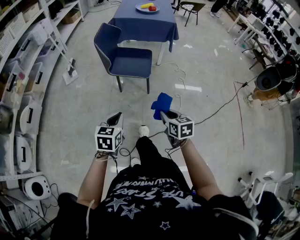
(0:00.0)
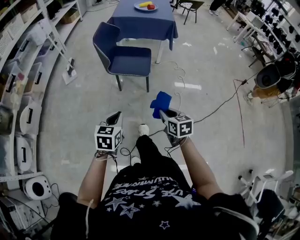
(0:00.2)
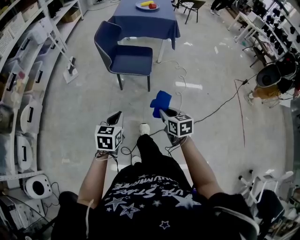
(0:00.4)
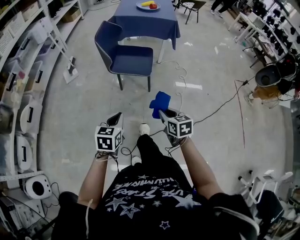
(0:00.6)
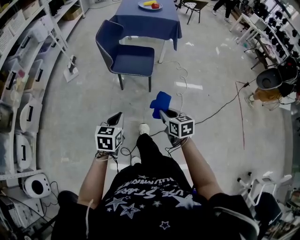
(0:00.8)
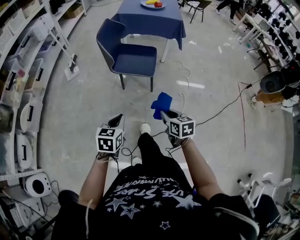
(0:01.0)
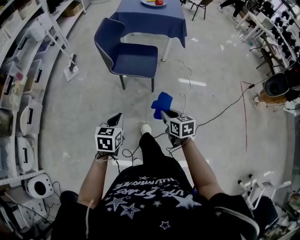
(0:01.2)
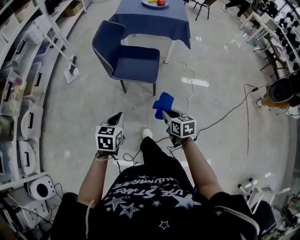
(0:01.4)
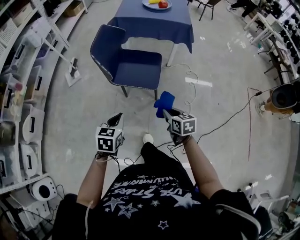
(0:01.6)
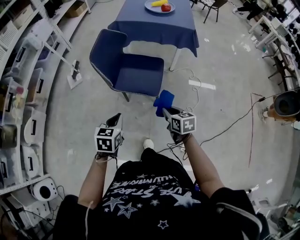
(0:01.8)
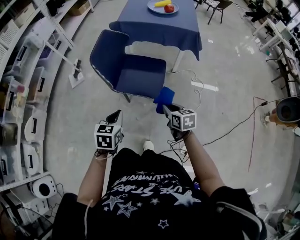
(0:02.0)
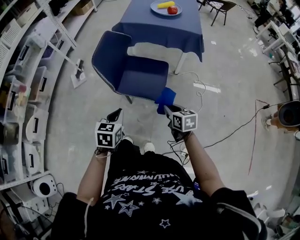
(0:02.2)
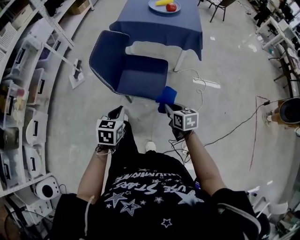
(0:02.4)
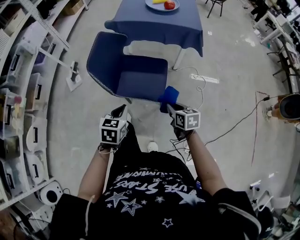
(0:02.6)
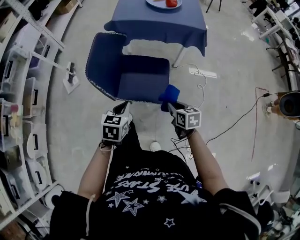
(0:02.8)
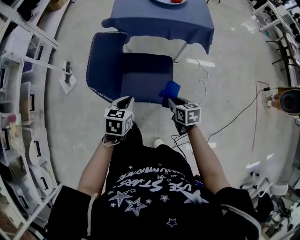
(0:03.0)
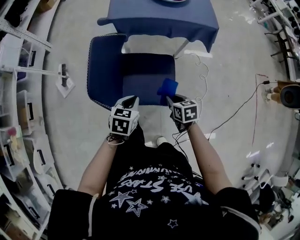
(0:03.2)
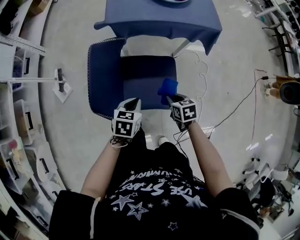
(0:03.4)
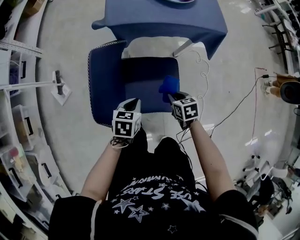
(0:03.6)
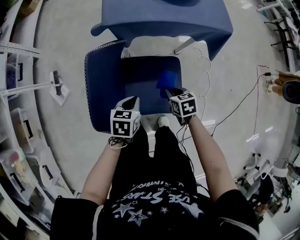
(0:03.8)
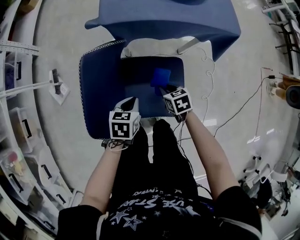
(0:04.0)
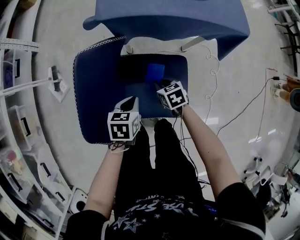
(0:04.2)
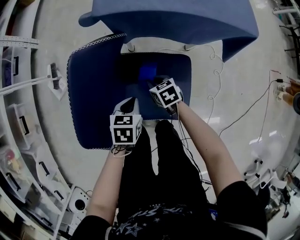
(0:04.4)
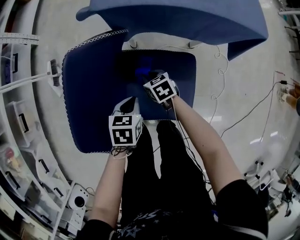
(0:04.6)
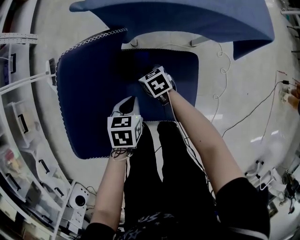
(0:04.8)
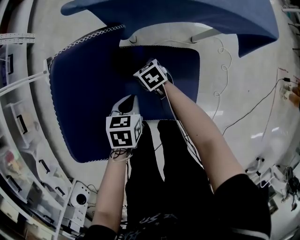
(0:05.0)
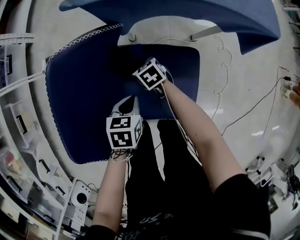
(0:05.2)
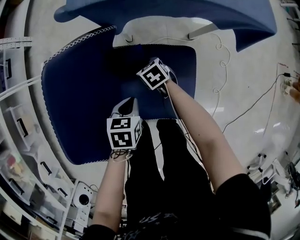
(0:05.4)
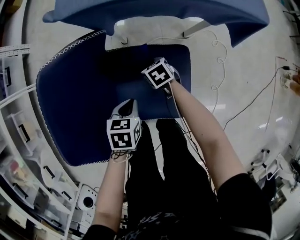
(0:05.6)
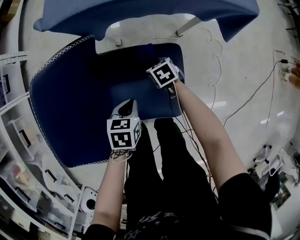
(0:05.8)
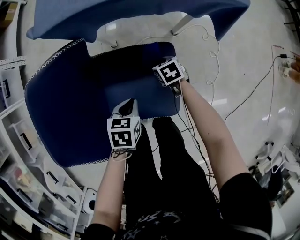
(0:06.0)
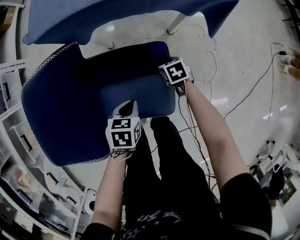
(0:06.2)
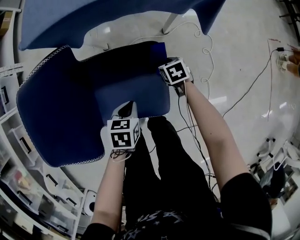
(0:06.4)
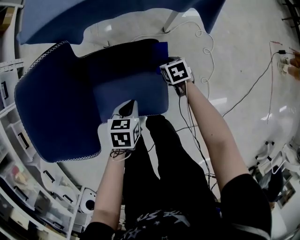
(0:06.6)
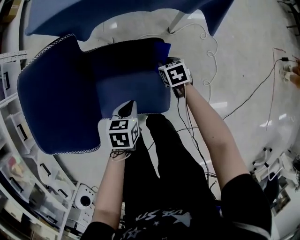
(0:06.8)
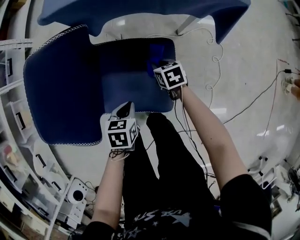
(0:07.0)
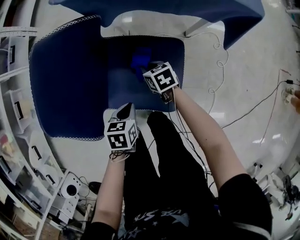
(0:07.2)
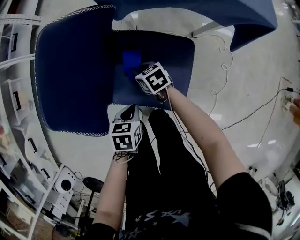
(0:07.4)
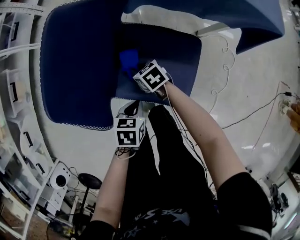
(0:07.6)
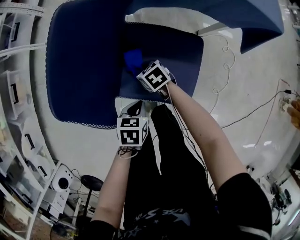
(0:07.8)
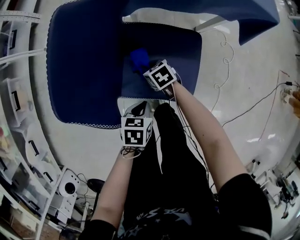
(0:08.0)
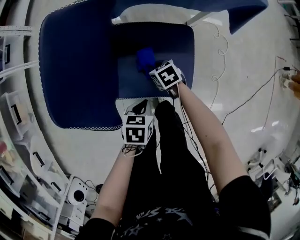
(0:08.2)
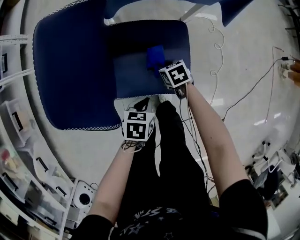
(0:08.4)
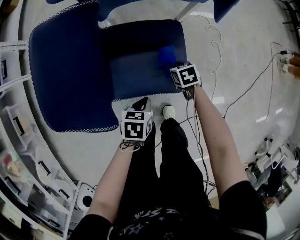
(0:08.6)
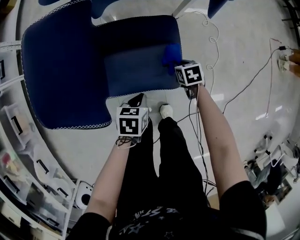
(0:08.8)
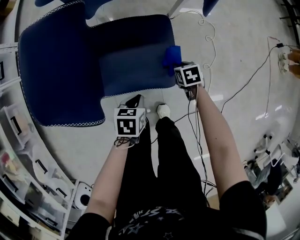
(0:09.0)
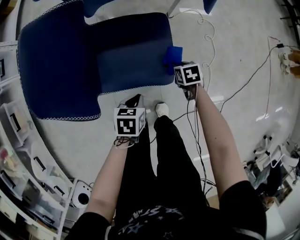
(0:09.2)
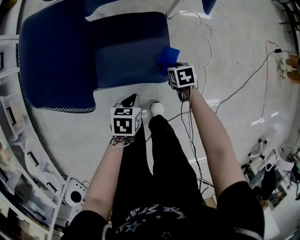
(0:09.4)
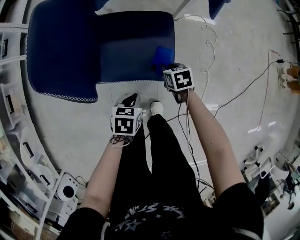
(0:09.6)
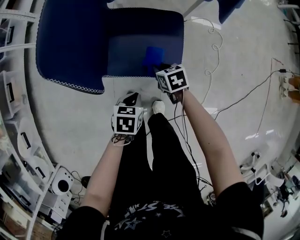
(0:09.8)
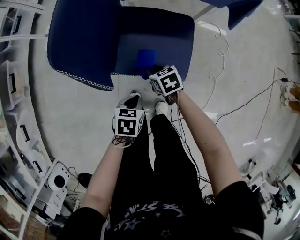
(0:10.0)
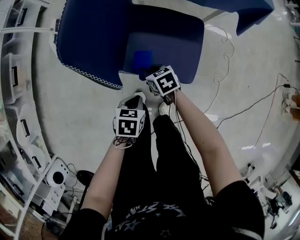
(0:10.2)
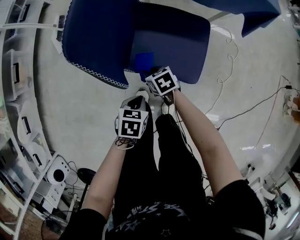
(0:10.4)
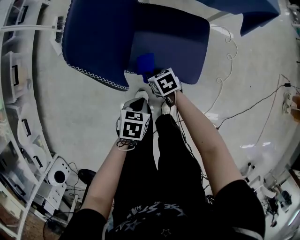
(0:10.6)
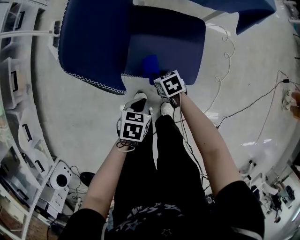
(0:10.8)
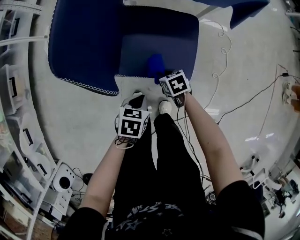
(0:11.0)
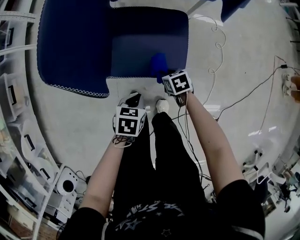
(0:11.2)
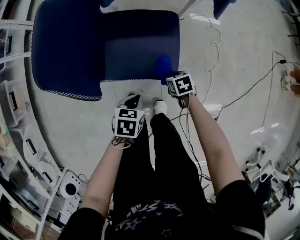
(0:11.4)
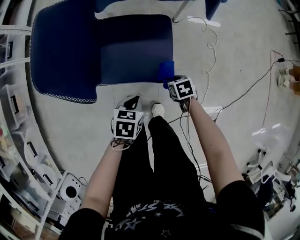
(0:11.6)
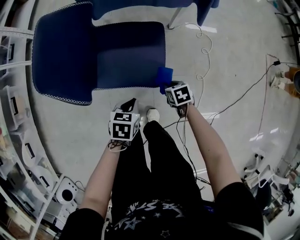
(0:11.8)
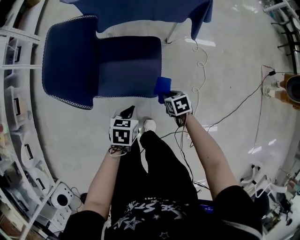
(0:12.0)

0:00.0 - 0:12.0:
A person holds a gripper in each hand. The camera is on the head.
0:00.0 - 0:01.6: The grippers both shift forward by roughly 20 cm.
0:01.6 - 0:03.0: The two grippers go about 25 cm forward.
0:03.0 - 0:04.4: The right gripper moves forward, downward and to the left, approximately 30 cm, while the left gripper is displaced downward and forward by roughly 20 cm.
0:04.4 - 0:06.0: The right gripper goes some 15 cm to the right and downward. Meanwhile the left gripper moves to the right, approximately 10 cm.
0:06.0 - 0:07.6: The left gripper changes place by some 10 cm. The right gripper moves about 25 cm, and changes its angle by some 30 degrees.
0:07.6 - 0:09.0: The right gripper ends up about 30 cm from where it was, and swivels some 40 degrees, while the left gripper ends up roughly 5 cm from where it was.
0:09.0 - 0:10.4: The left gripper shifts by approximately 10 cm; the right gripper shifts by some 30 cm, and swivels some 30 degrees.
0:10.4 - 0:12.0: The right gripper is displaced to the right by some 30 cm. The left gripper moves to the right and upward, some 15 cm.

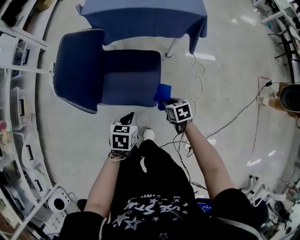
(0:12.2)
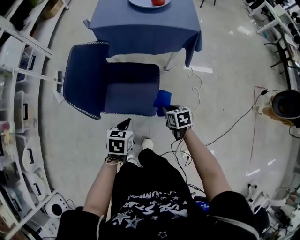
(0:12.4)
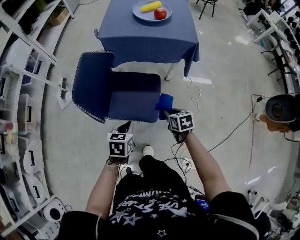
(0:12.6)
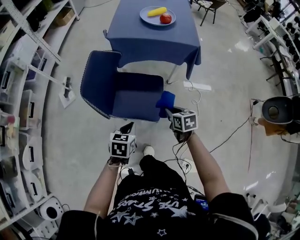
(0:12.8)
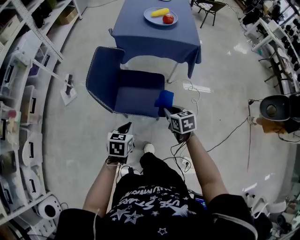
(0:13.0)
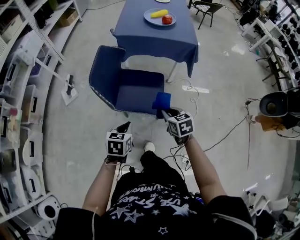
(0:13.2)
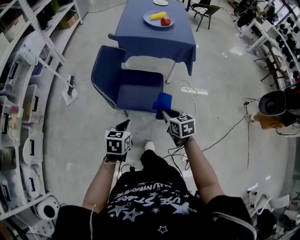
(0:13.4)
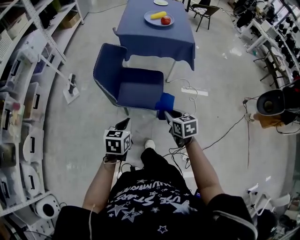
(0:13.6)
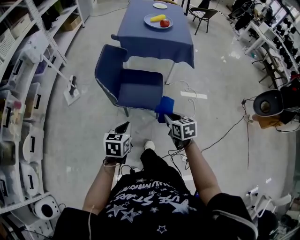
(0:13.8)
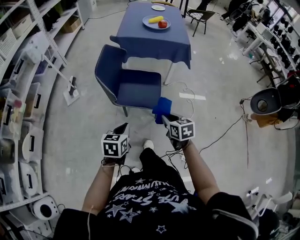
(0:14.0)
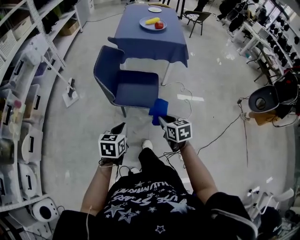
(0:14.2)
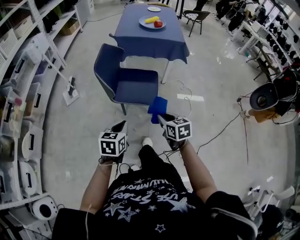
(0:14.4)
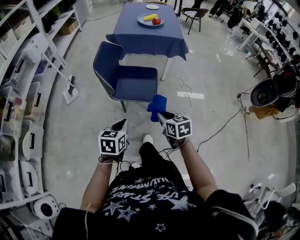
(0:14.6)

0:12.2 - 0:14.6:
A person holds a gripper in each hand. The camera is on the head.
0:12.2 - 0:13.4: The right gripper travels upward and backward by some 25 cm, and changes its angle by about 20 degrees, while the left gripper moves upward, backward and to the left, approximately 20 cm.
0:13.4 - 0:14.6: Both grippers move backward, approximately 15 cm.

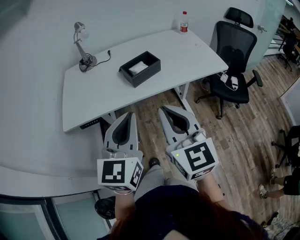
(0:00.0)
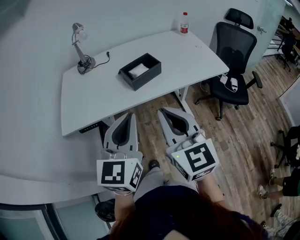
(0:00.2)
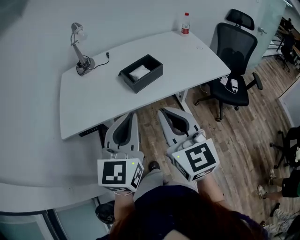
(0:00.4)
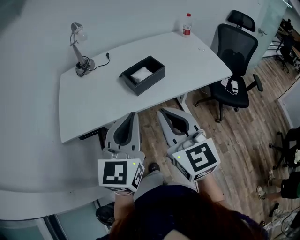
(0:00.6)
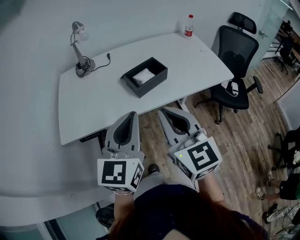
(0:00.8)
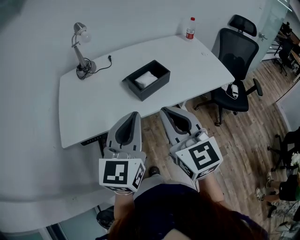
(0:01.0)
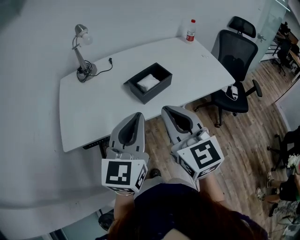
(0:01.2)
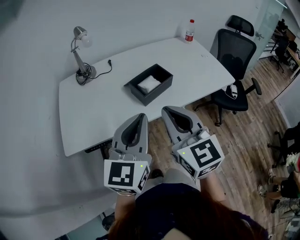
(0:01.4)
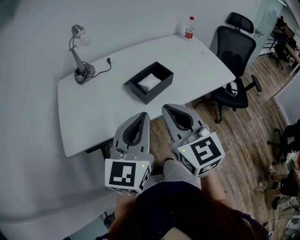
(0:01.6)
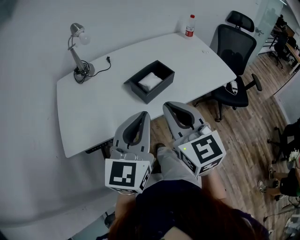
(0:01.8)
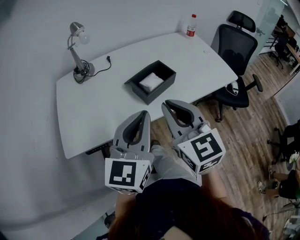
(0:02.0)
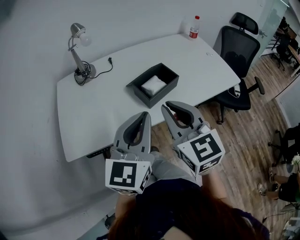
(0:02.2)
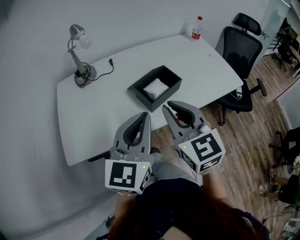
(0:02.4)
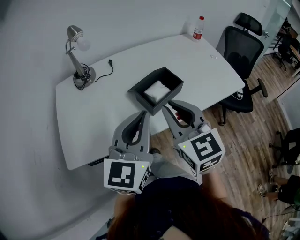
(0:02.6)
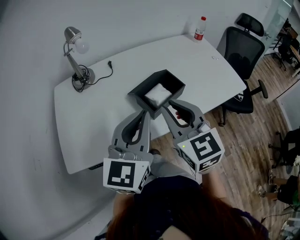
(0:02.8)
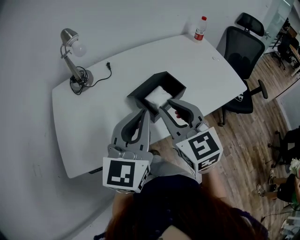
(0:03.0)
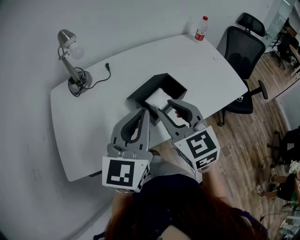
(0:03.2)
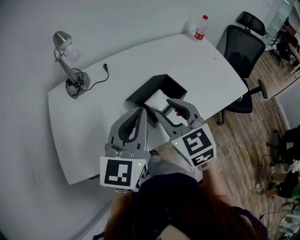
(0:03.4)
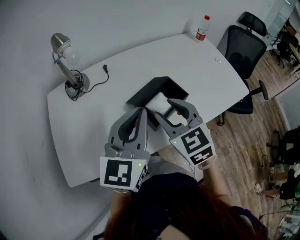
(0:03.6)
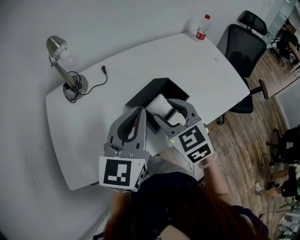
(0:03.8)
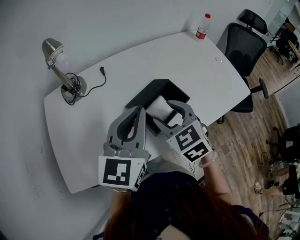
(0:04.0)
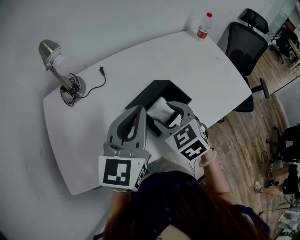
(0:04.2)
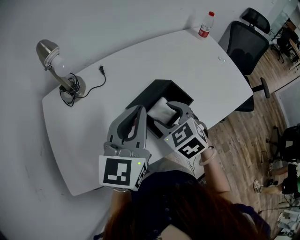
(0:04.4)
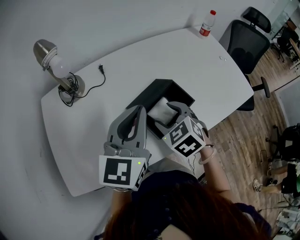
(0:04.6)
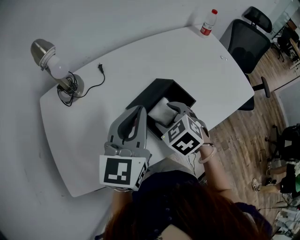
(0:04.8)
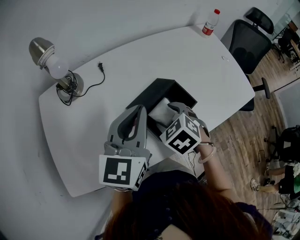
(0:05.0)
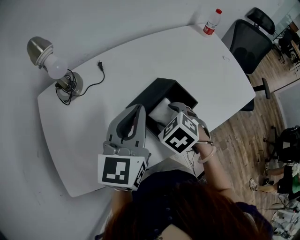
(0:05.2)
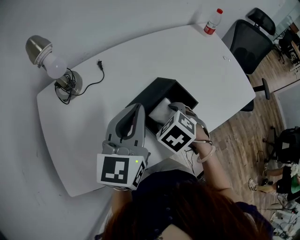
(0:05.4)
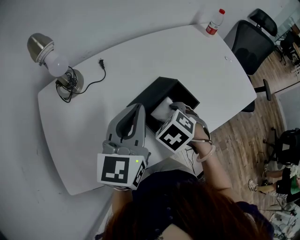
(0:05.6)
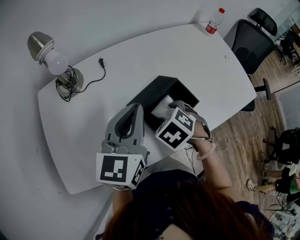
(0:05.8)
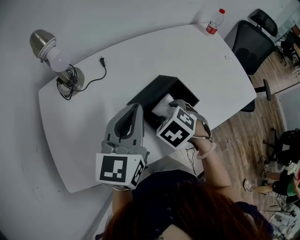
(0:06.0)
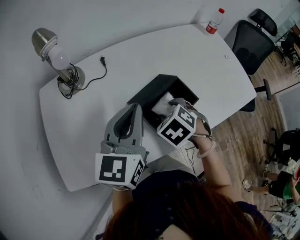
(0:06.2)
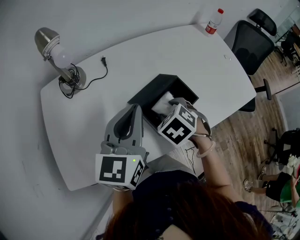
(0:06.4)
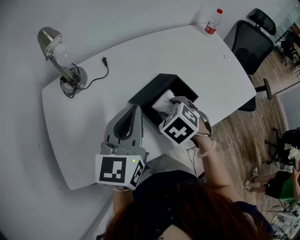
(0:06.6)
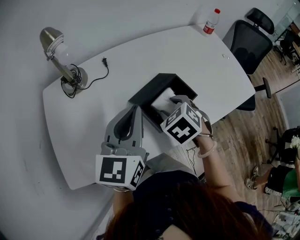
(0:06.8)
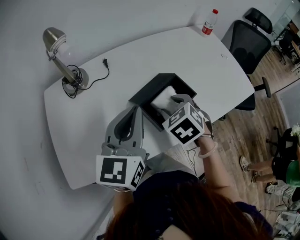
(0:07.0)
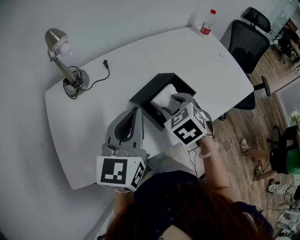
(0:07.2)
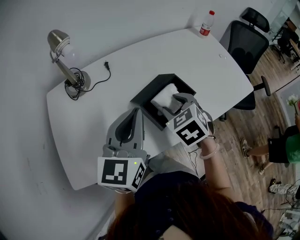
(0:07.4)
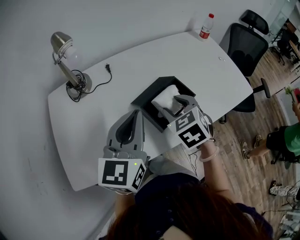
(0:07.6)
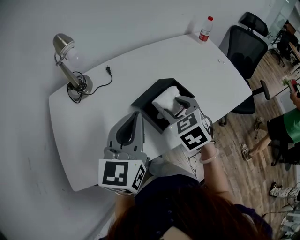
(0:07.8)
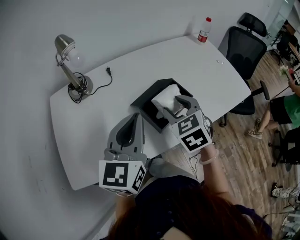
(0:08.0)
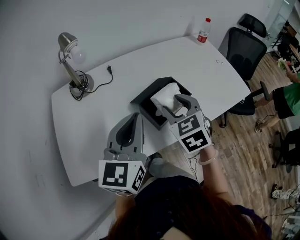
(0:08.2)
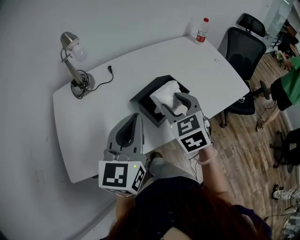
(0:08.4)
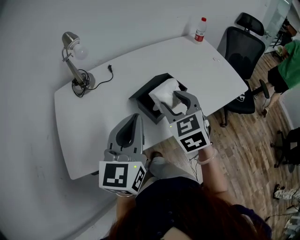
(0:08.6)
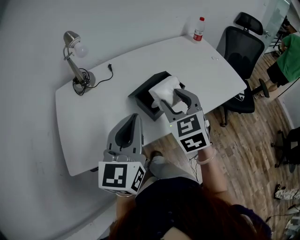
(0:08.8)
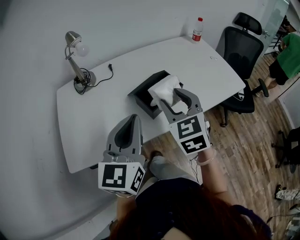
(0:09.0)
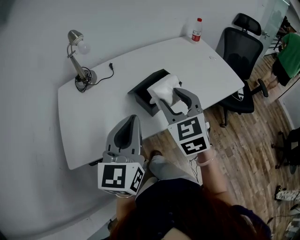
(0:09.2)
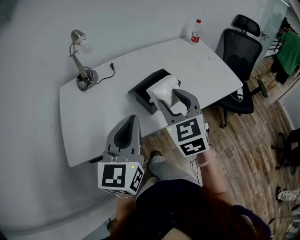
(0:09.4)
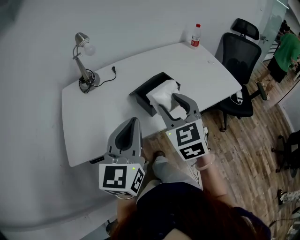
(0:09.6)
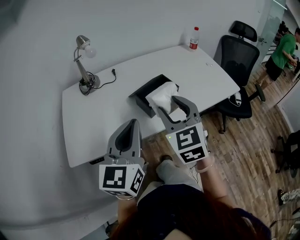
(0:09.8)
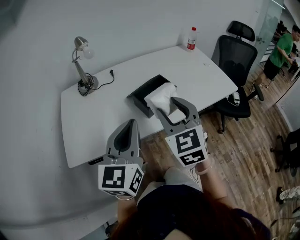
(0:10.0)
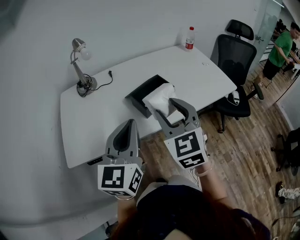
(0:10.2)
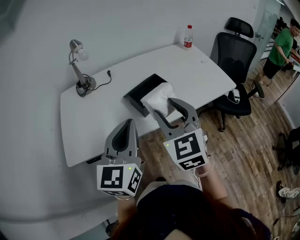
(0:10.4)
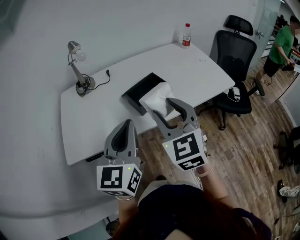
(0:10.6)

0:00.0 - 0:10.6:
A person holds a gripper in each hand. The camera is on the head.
0:00.0 - 0:01.6: The right gripper heads forward and to the left, covering about 15 cm, while the left gripper is displaced forward by about 10 cm.
0:01.6 - 0:03.0: Both grippers move forward, some 15 cm.
0:03.0 - 0:04.6: The left gripper is displaced forward by approximately 10 cm; the right gripper travels downward and forward by about 20 cm, tilts its fingers approximately 30 degrees downward, and opens up.
0:04.6 - 0:06.0: The right gripper changes its angle by approximately 20 degrees.
0:06.0 - 0:07.6: The right gripper travels upward by approximately 10 cm, and changes its angle by approximately 20 degrees. The left gripper shifts approximately 5 cm backward.
0:07.6 - 0:09.0: The right gripper is displaced upward and backward by roughly 10 cm, and turns by approximately 20 degrees; the left gripper heads backward, covering about 10 cm.
0:09.0 - 0:10.6: The two grippers go roughly 10 cm backward.
